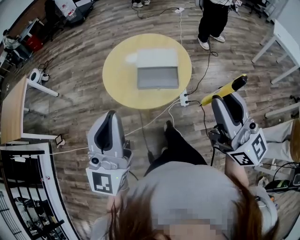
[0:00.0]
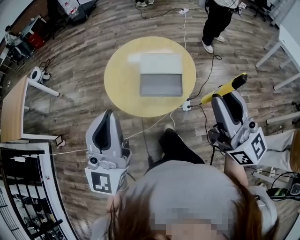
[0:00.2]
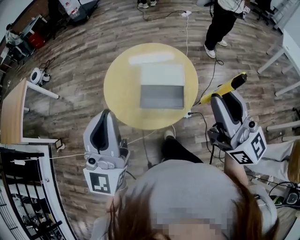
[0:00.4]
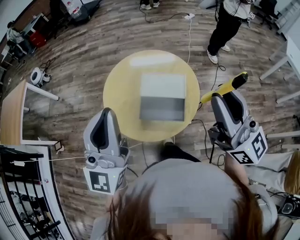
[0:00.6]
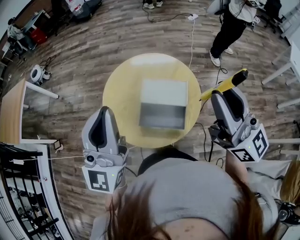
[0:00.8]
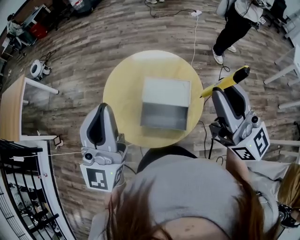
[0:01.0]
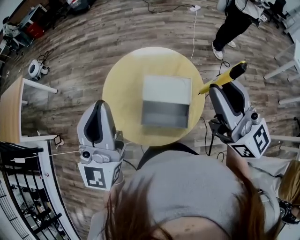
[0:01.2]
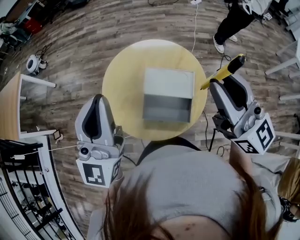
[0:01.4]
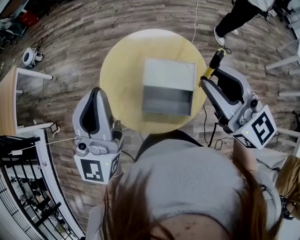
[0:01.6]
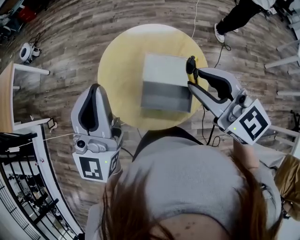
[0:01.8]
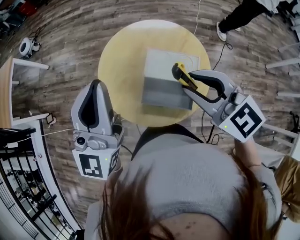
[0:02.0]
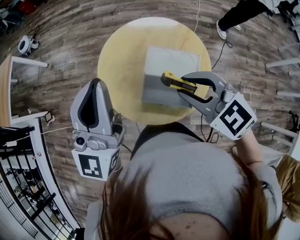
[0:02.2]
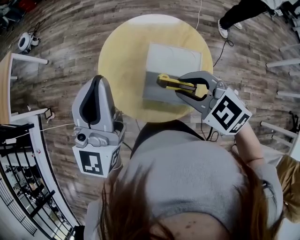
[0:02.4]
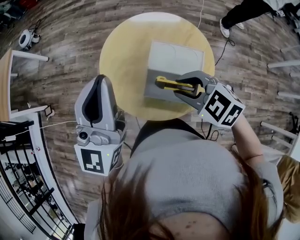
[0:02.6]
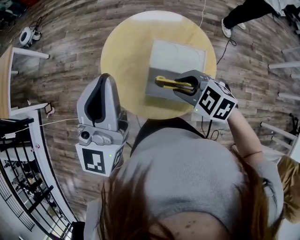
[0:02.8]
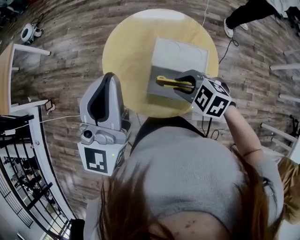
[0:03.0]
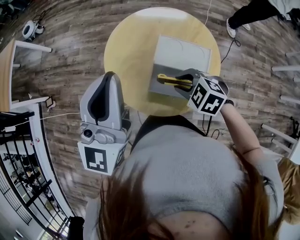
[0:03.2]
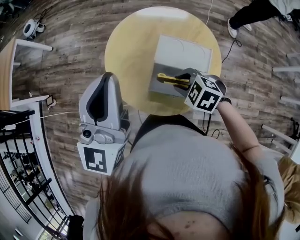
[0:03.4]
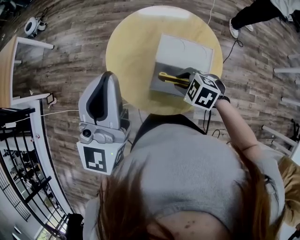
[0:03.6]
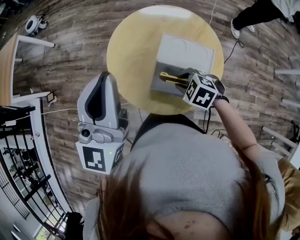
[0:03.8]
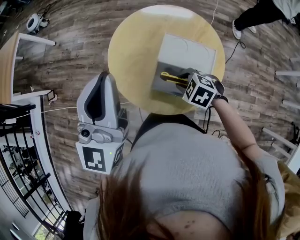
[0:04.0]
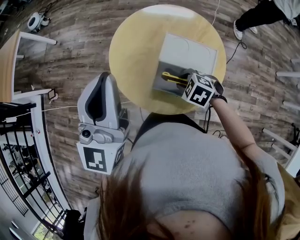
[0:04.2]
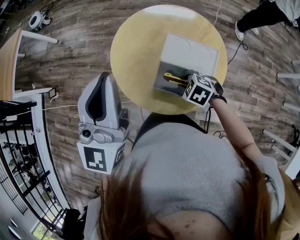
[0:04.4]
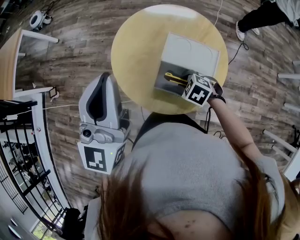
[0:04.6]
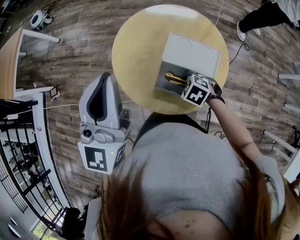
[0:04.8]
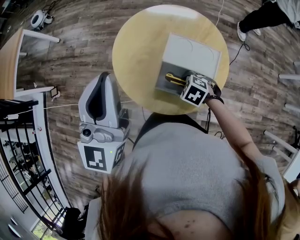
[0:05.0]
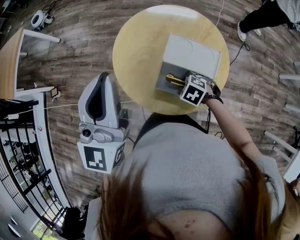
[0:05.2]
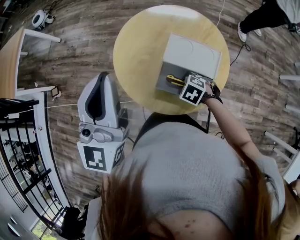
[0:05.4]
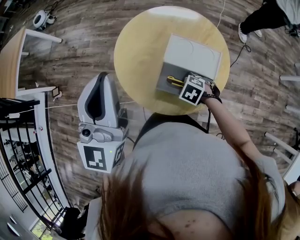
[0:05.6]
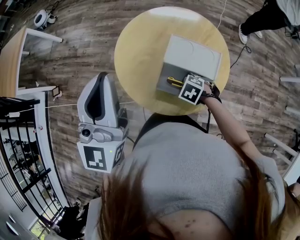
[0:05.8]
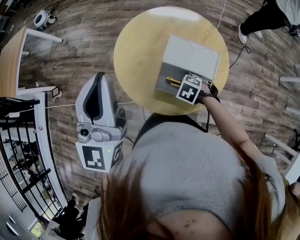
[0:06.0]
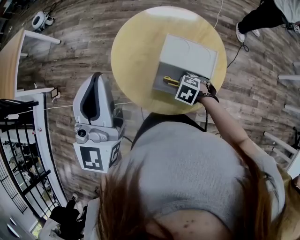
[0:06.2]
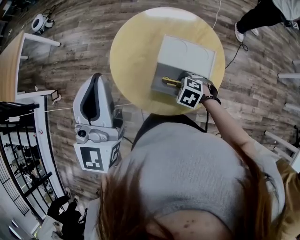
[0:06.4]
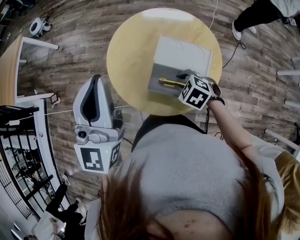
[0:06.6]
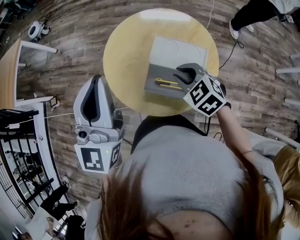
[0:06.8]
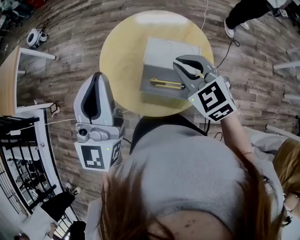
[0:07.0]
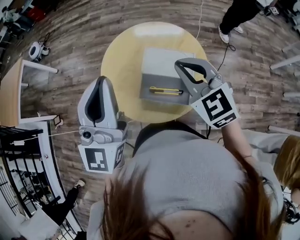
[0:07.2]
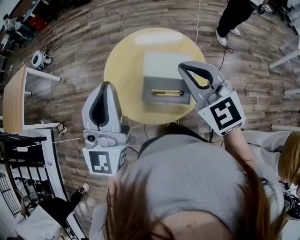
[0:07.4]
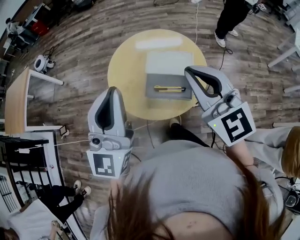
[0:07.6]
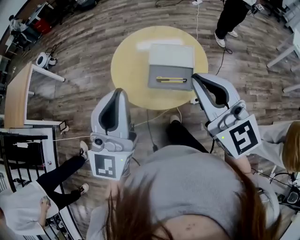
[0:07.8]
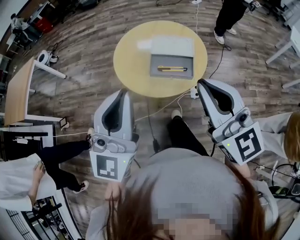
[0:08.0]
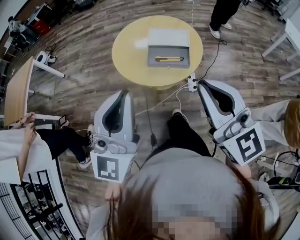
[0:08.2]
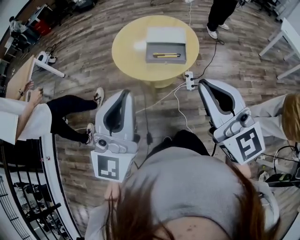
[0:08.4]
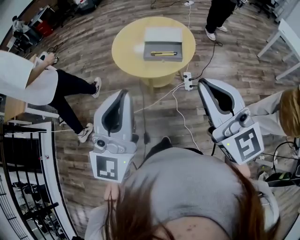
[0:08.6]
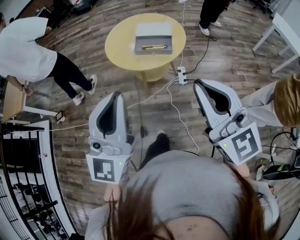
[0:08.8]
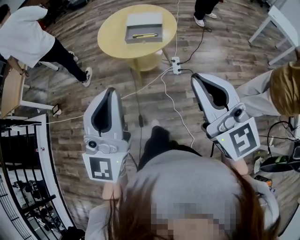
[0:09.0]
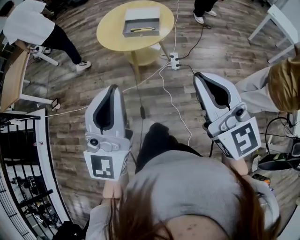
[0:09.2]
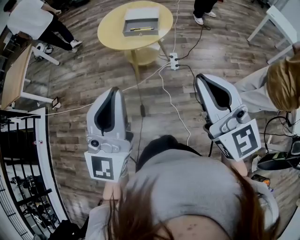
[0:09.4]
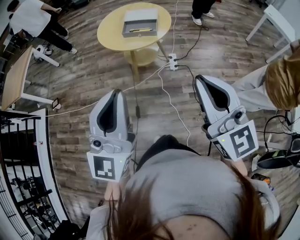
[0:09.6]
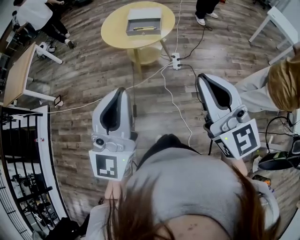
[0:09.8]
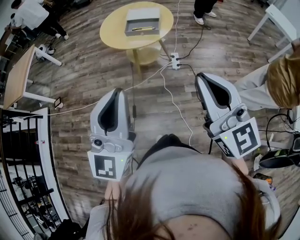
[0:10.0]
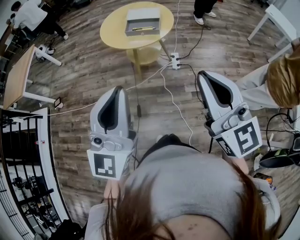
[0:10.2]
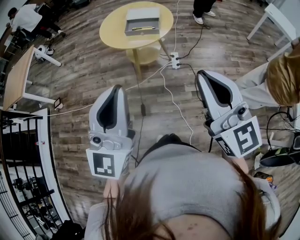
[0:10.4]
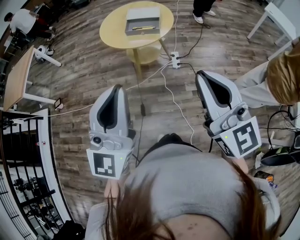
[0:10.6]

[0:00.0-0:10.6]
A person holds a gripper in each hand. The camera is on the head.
0:00.0 to 0:01.6: The two grippers go roughly 25 cm forward. The right gripper swivels some 30 degrees.
0:01.6 to 0:03.0: The right gripper travels downward by about 25 cm, and points its fingers roughly 50 degrees further downward.
0:03.0 to 0:04.6: The right gripper moves downward, roughly 10 cm.
0:04.6 to 0:06.0: The grippers stay close to where they were, moving slightly.
0:06.0 to 0:07.6: The left gripper ends up roughly 10 cm from where it was, while the right gripper shifts some 40 cm upward, tips its fingers upward by roughly 70 degrees, and closes up.
0:07.6 to 0:09.0: The grippers both shift backward by some 40 cm.
0:09.0 to 0:10.6: Both grippers travel together backward, about 10 cm.

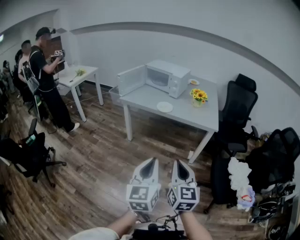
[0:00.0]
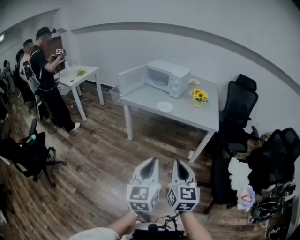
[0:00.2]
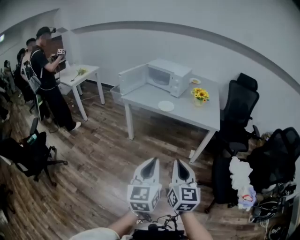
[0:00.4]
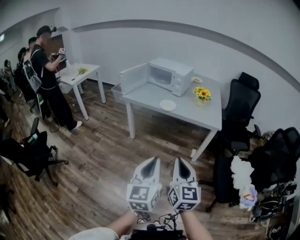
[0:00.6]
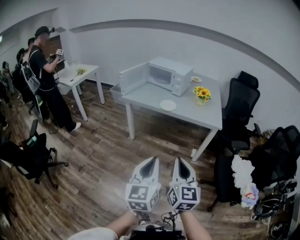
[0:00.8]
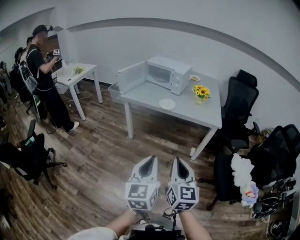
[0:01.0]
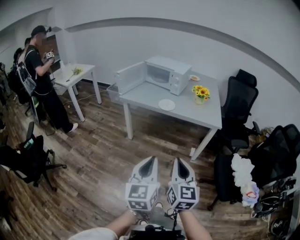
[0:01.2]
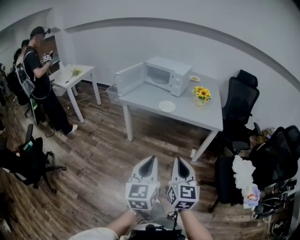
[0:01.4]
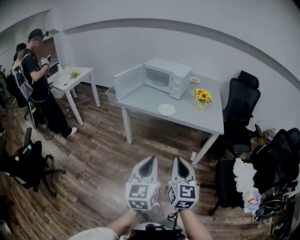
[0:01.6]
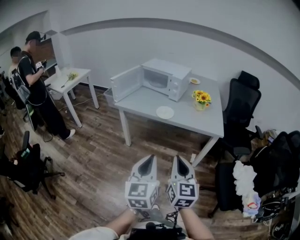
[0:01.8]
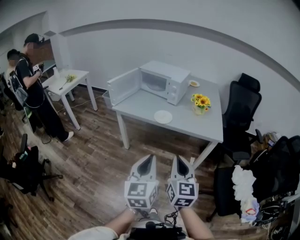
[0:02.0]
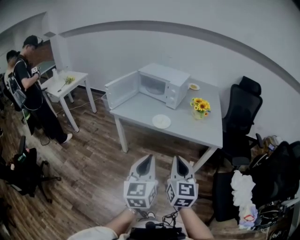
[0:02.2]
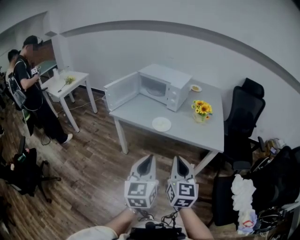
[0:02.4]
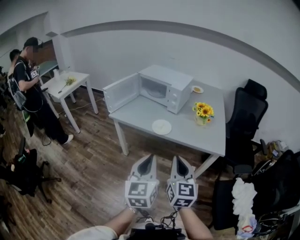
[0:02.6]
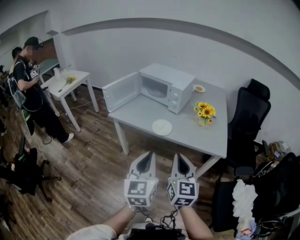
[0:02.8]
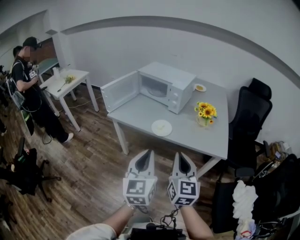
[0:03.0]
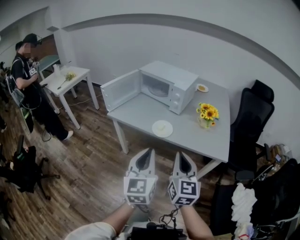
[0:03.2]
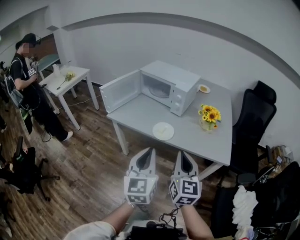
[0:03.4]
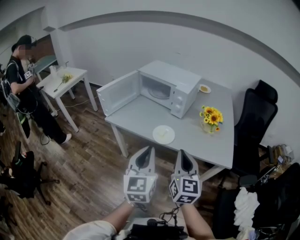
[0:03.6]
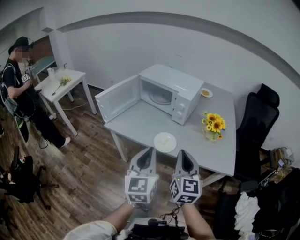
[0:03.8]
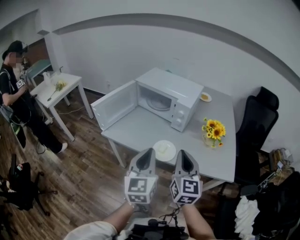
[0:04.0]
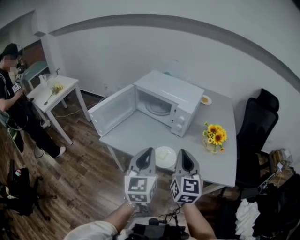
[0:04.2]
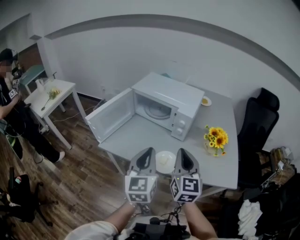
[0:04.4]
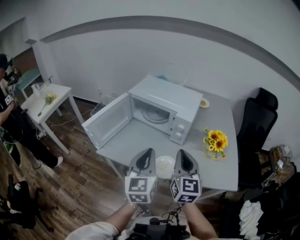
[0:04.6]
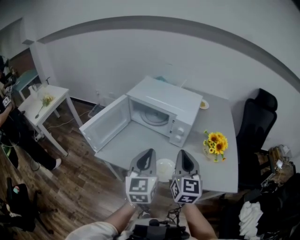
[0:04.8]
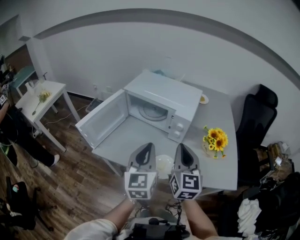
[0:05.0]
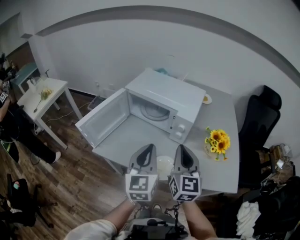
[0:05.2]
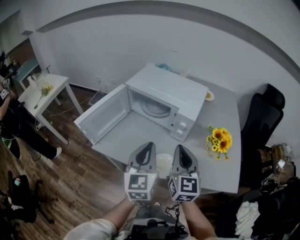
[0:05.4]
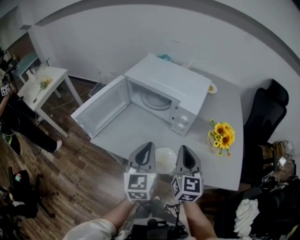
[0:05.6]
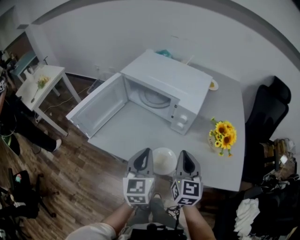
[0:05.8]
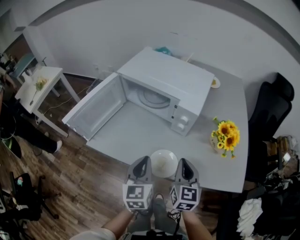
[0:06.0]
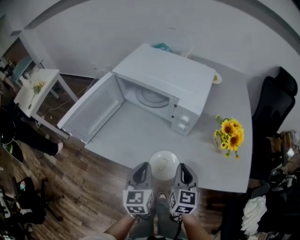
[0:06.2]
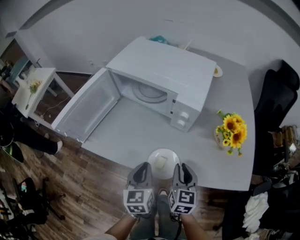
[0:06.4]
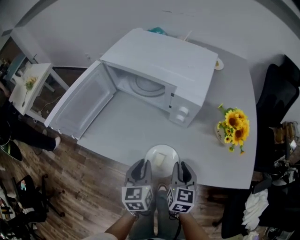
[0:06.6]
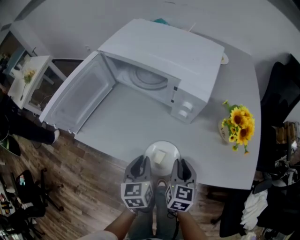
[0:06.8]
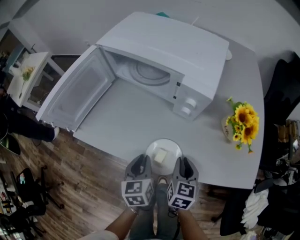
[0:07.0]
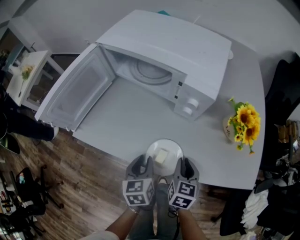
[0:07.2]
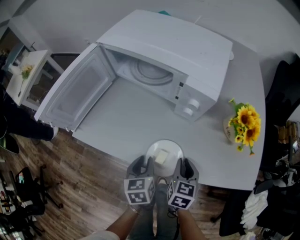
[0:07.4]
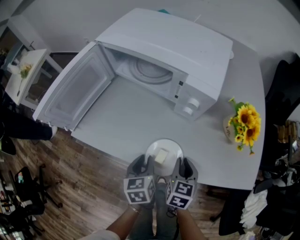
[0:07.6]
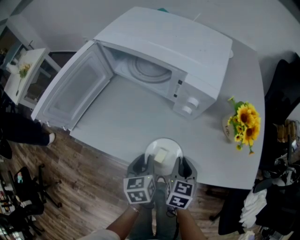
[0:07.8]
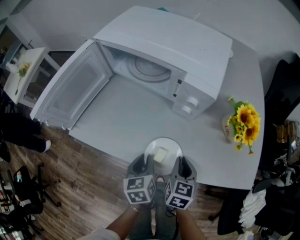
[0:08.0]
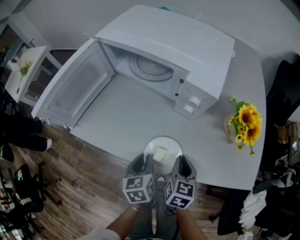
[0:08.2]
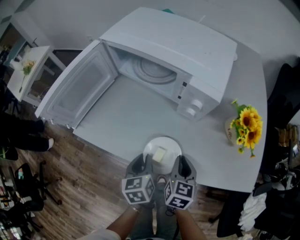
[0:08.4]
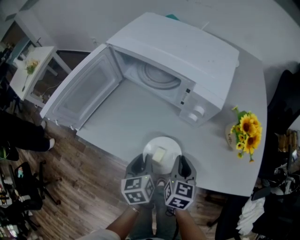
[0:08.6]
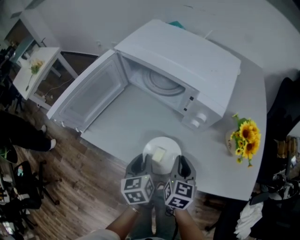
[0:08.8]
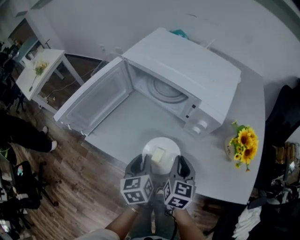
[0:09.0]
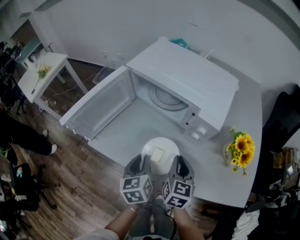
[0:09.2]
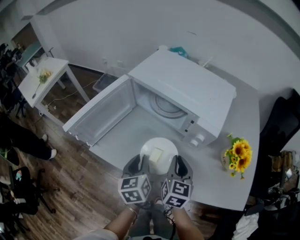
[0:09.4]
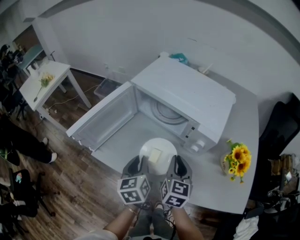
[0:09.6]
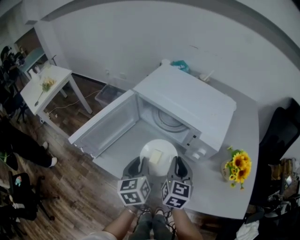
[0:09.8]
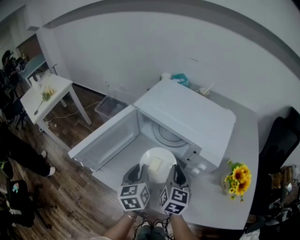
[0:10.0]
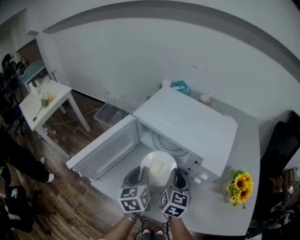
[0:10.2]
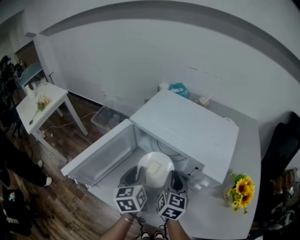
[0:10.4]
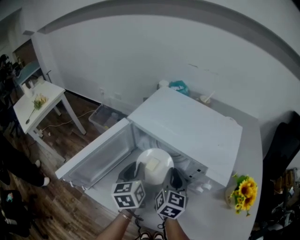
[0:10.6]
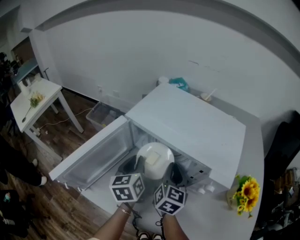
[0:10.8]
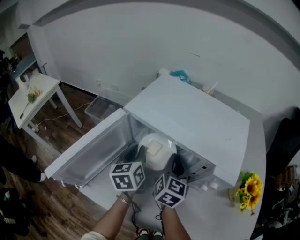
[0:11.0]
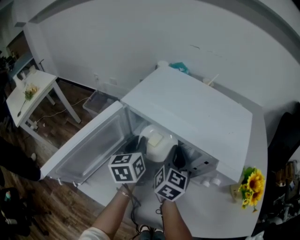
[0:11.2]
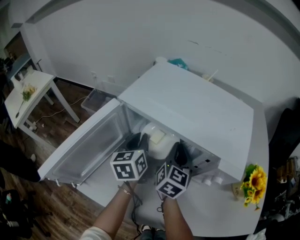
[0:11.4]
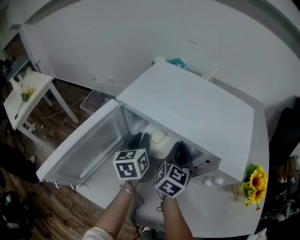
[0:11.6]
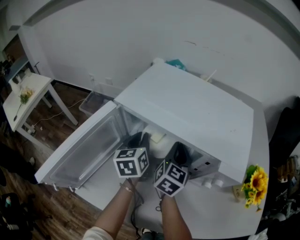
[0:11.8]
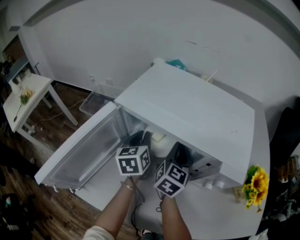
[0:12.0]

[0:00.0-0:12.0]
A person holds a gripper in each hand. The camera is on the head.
0:00.0 to 0:01.6: Both grippers move forward, some 10 cm.
0:01.6 to 0:03.0: The two grippers go roughly 25 cm forward.
0:03.0 to 0:04.4: Both grippers travel together forward, roughly 30 cm.
0:04.4 to 0:06.0: The grippers both shift downward and forward by about 15 cm.
0:06.0 to 0:07.6: The two grippers go approximately 15 cm downward. The right gripper rotates approximately 20 degrees, and opens. The left gripper swivels roughly 30 degrees, and opens its fingers.
0:07.6 to 0:09.0: The right gripper moves upward, to the left and forward, approximately 10 cm. The left gripper shifts roughly 10 cm upward and to the left.
0:09.0 to 0:10.4: The left gripper moves forward and upward, approximately 20 cm. Meanwhile the right gripper travels forward and to the left by some 20 cm.
0:10.4 to 0:12.0: The two grippers go approximately 15 cm forward and downward.

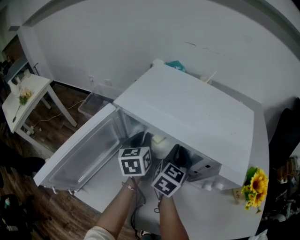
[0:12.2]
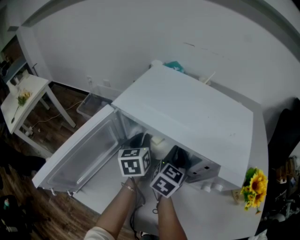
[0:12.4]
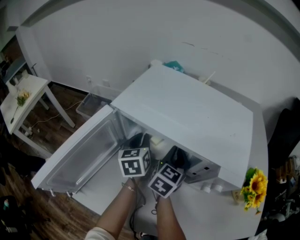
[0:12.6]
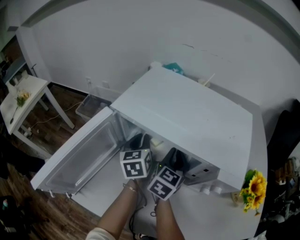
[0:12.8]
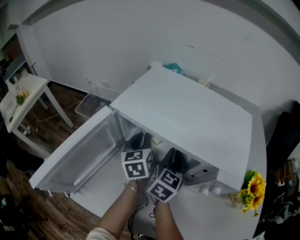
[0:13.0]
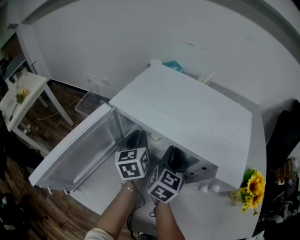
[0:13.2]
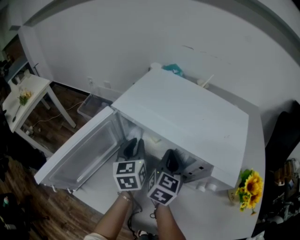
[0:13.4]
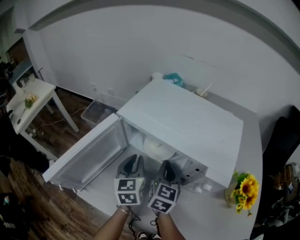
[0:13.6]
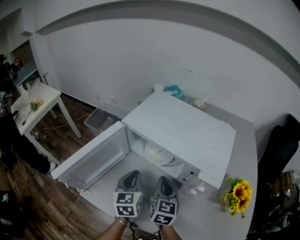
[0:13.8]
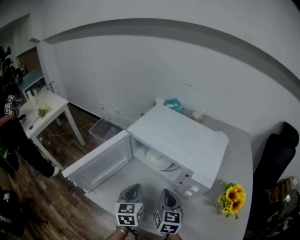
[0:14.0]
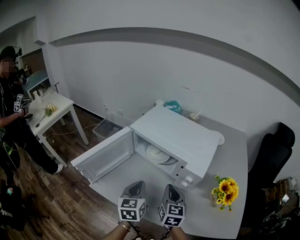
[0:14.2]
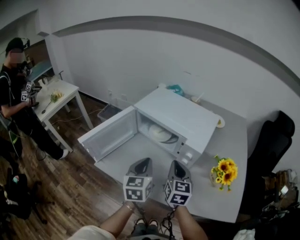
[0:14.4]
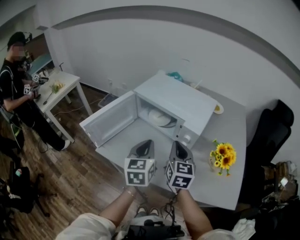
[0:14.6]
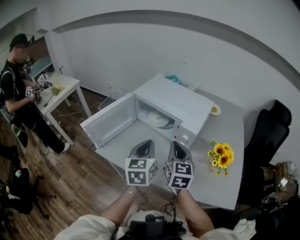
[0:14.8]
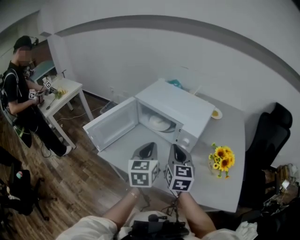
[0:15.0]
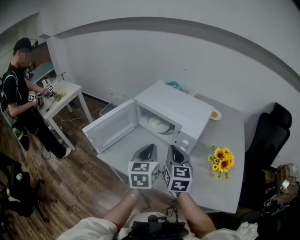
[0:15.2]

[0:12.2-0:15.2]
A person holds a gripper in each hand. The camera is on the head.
0:12.2 to 0:13.8: The two grippers go approximately 15 cm backward. The right gripper turns by some 20 degrees.
0:13.8 to 0:15.2: The right gripper heads backward and upward, covering about 20 cm, while the left gripper heads backward, upward and to the right, covering about 25 cm.
